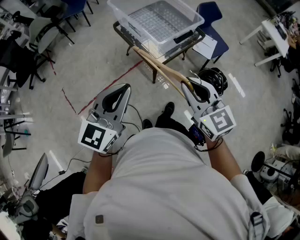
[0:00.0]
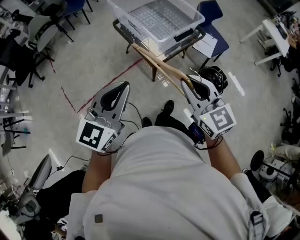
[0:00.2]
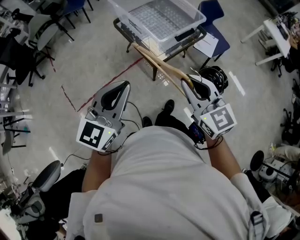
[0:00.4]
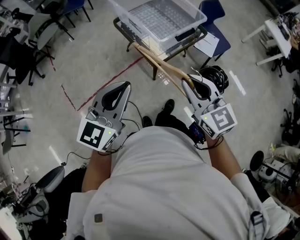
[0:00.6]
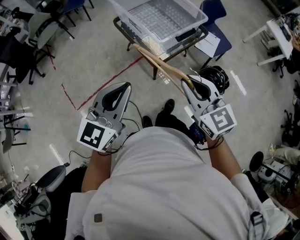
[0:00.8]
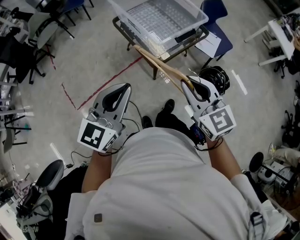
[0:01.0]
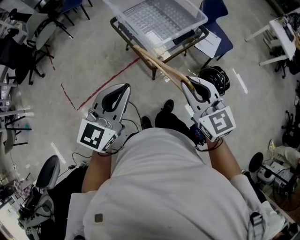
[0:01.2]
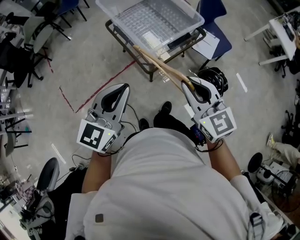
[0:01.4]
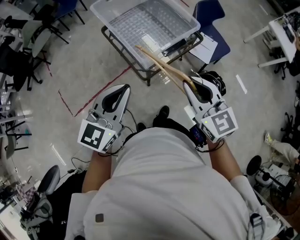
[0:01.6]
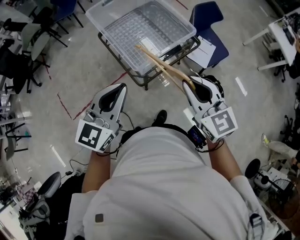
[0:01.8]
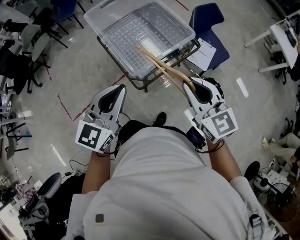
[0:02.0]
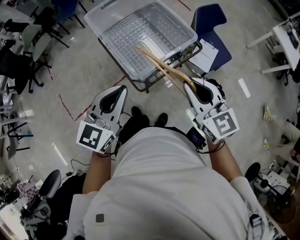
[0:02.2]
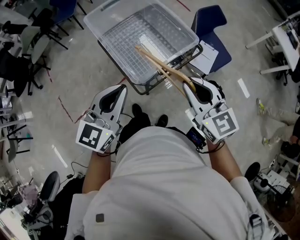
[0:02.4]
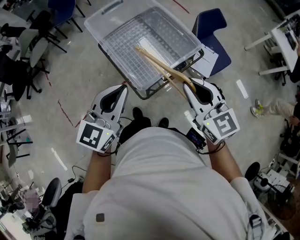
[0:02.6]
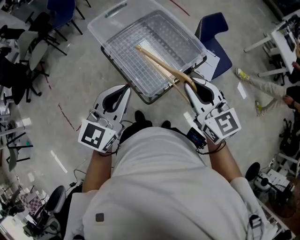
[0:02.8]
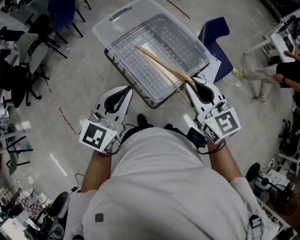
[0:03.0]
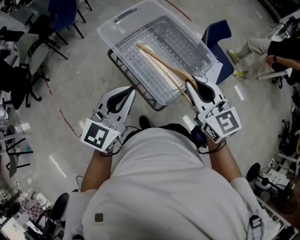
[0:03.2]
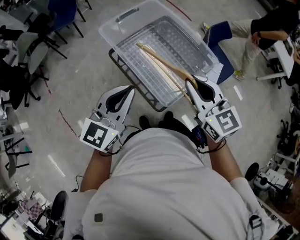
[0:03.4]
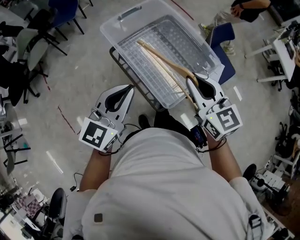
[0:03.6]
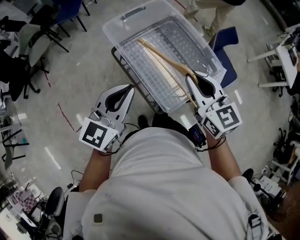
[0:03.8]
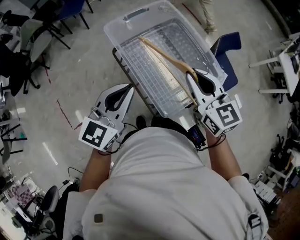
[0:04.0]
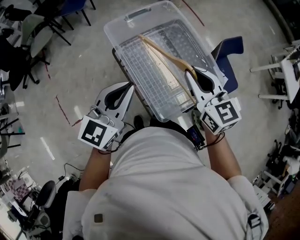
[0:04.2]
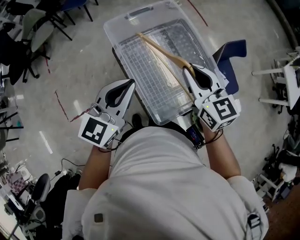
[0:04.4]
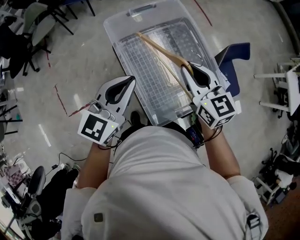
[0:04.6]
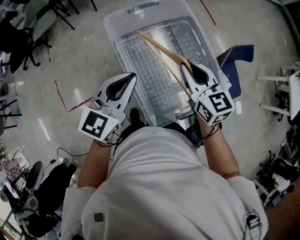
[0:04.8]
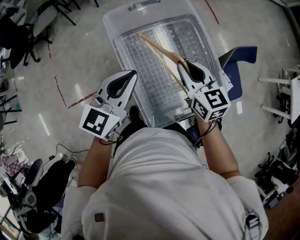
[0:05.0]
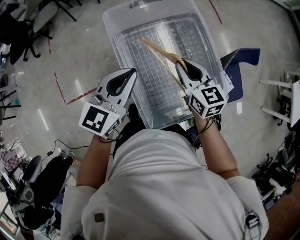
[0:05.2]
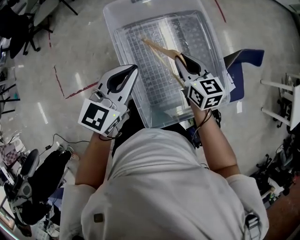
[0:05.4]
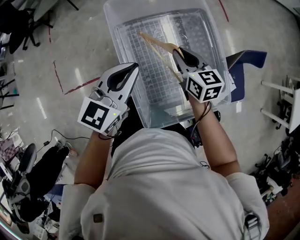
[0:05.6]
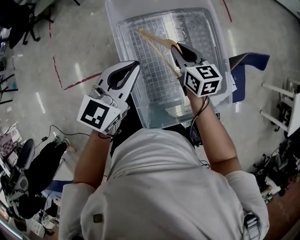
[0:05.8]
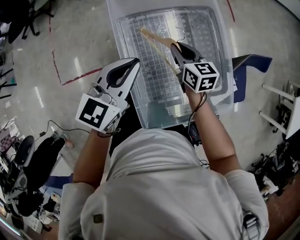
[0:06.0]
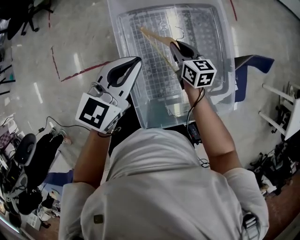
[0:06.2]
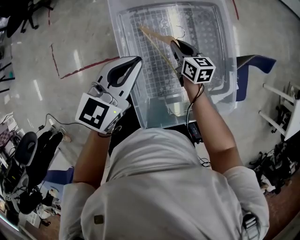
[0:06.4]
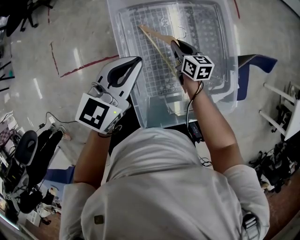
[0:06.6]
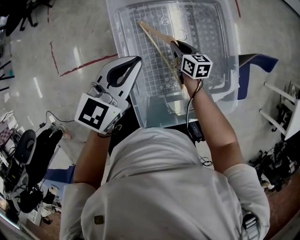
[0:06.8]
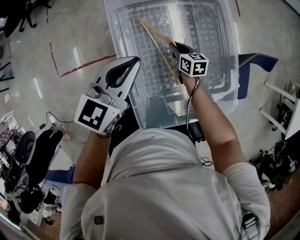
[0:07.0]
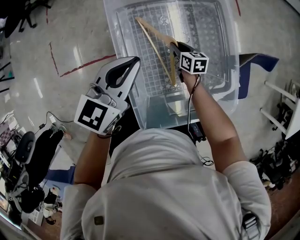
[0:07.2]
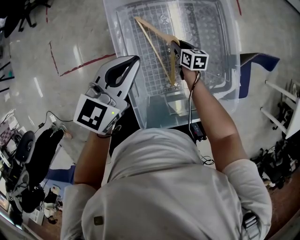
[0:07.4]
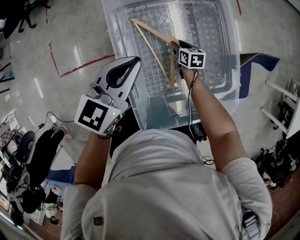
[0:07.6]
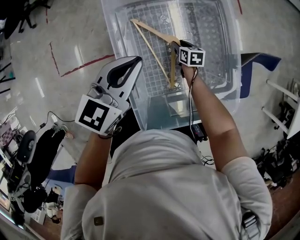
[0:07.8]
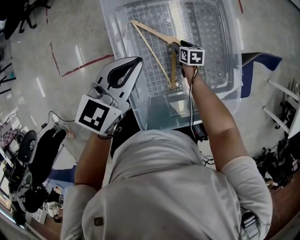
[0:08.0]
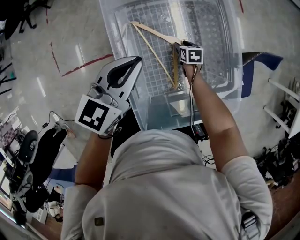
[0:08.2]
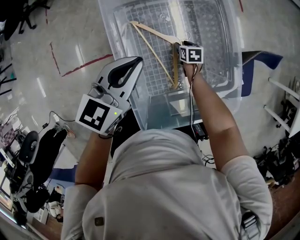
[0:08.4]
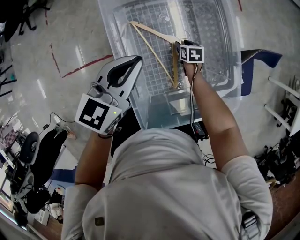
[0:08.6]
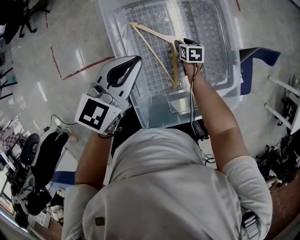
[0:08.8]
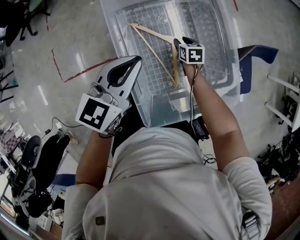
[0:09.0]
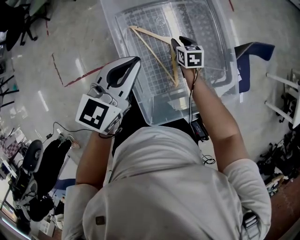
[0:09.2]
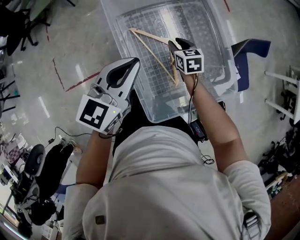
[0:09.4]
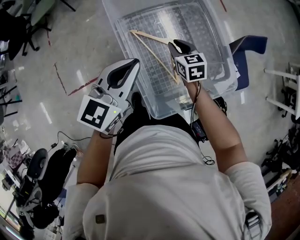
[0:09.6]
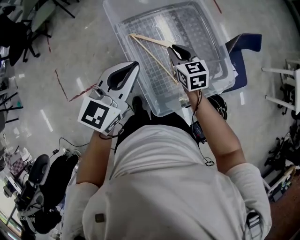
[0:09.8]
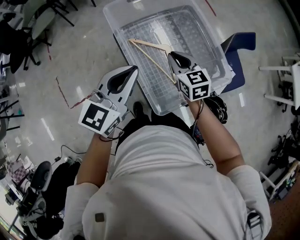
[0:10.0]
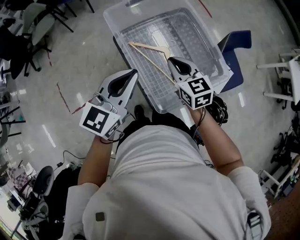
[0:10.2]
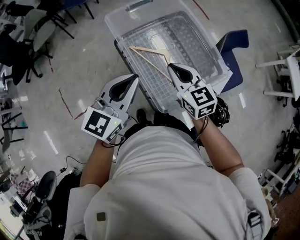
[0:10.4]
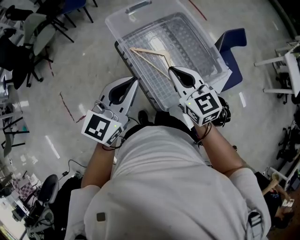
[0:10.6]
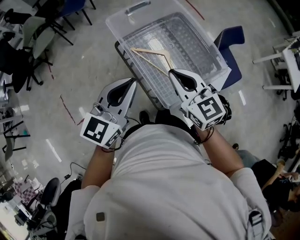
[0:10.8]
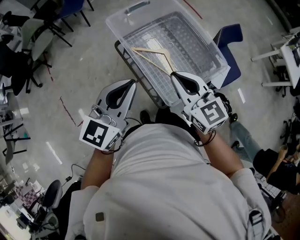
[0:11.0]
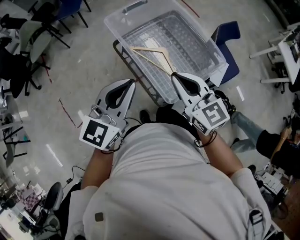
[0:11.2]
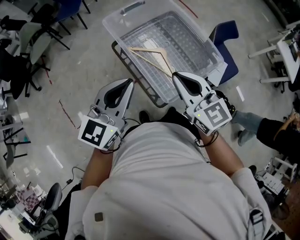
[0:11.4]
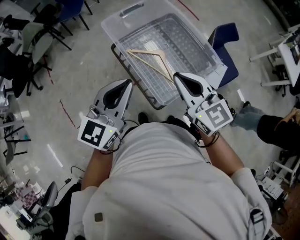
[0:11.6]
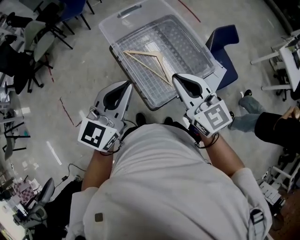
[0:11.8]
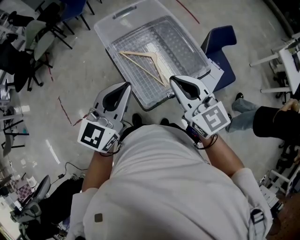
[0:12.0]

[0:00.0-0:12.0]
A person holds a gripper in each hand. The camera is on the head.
0:00.0 to 0:01.6: The two grippers go approximately 20 cm forward and to the right.
0:01.6 to 0:03.0: Both grippers move forward, some 20 cm.
0:03.0 to 0:04.4: Both grippers travel together forward, about 15 cm.
0:04.4 to 0:06.0: The right gripper shifts approximately 25 cm downward and forward, and turns by roughly 20 degrees. Meanwhile the left gripper is displaced downward and forward by approximately 15 cm.
0:06.0 to 0:07.6: The right gripper travels downward by approximately 20 cm, and swivels some 20 degrees.
0:07.6 to 0:09.0: The grippers move only a little.
0:09.0 to 0:10.4: The left gripper shifts roughly 15 cm backward and upward; the right gripper travels upward and backward by roughly 40 cm, tips its fingers upward by some 30 degrees, and closes its fingers.
0:10.4 to 0:12.0: The right gripper is displaced upward, backward and to the right by some 20 cm; the left gripper travels backward, to the right and upward by about 10 cm.

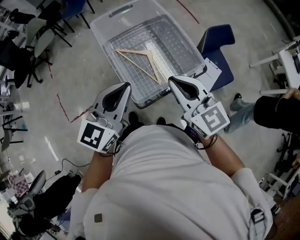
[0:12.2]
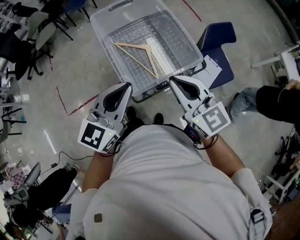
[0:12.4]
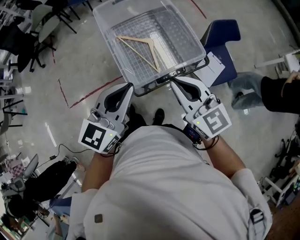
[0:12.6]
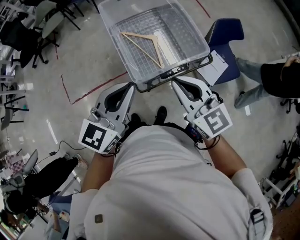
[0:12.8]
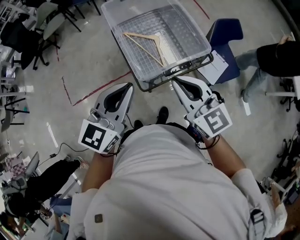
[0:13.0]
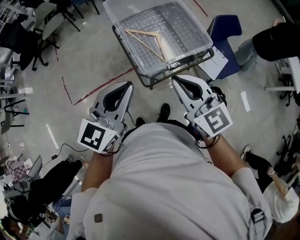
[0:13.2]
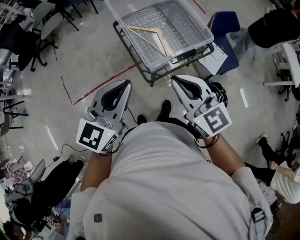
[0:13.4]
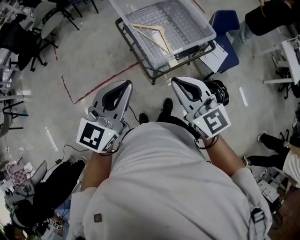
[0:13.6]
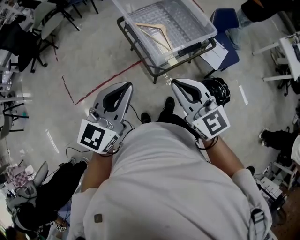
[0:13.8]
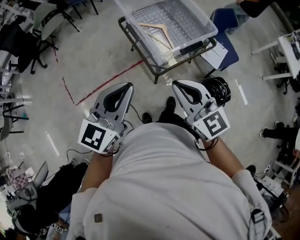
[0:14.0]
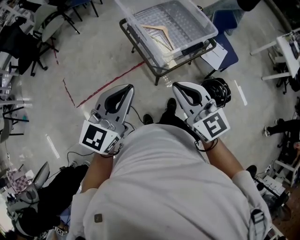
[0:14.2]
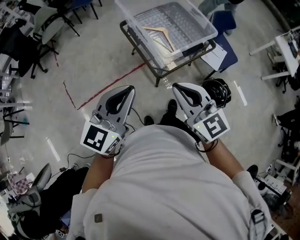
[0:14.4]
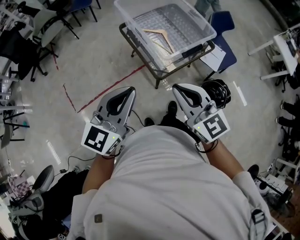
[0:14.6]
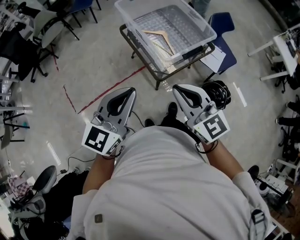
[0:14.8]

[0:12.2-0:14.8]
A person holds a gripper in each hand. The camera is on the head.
0:12.2 to 0:13.4: Both grippers travel together backward and to the left, approximately 15 cm.
0:13.4 to 0:14.8: Both grippers move to the left and backward, about 15 cm.

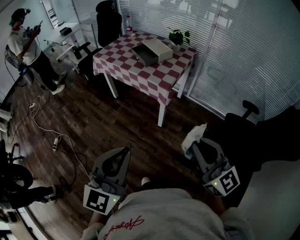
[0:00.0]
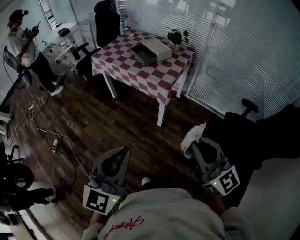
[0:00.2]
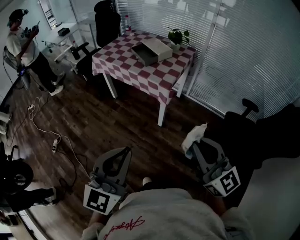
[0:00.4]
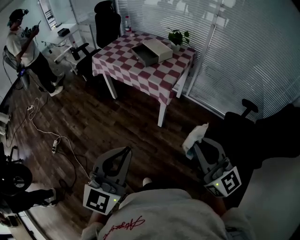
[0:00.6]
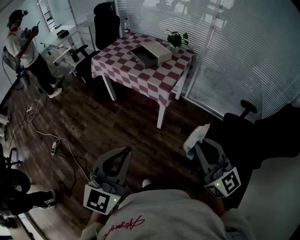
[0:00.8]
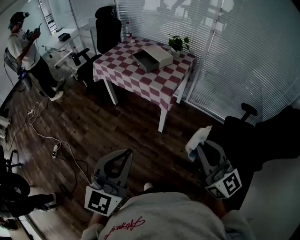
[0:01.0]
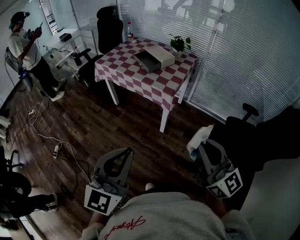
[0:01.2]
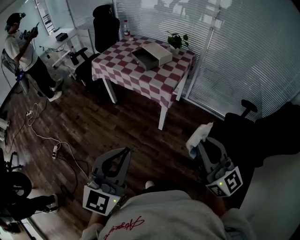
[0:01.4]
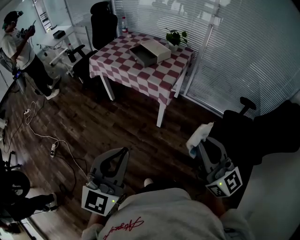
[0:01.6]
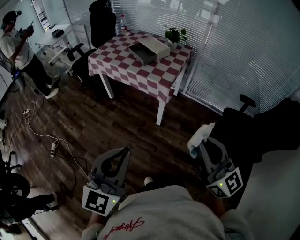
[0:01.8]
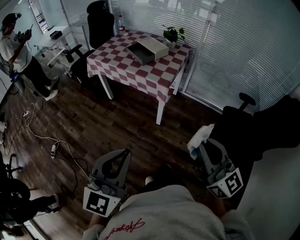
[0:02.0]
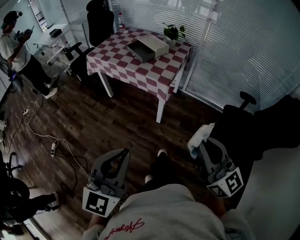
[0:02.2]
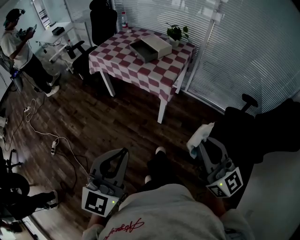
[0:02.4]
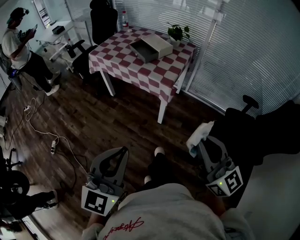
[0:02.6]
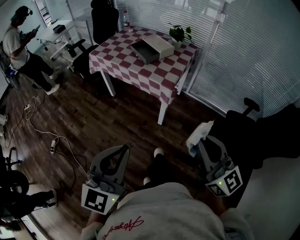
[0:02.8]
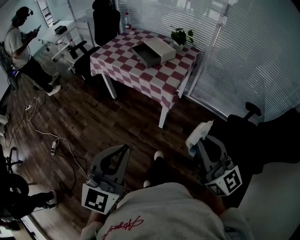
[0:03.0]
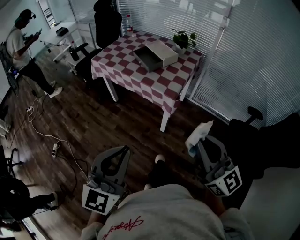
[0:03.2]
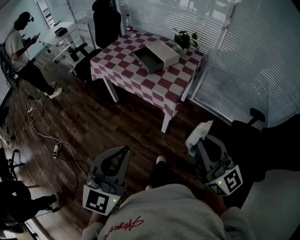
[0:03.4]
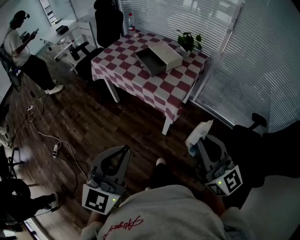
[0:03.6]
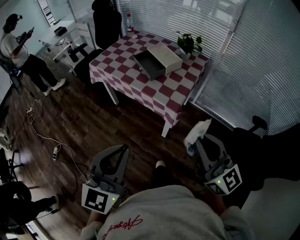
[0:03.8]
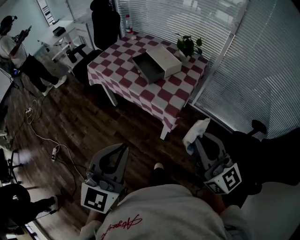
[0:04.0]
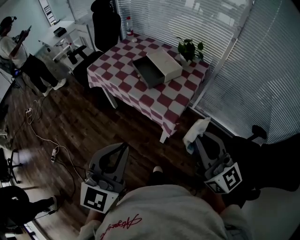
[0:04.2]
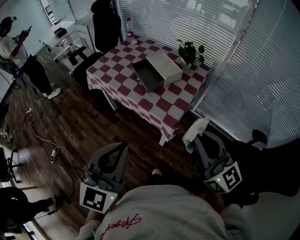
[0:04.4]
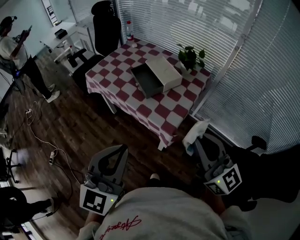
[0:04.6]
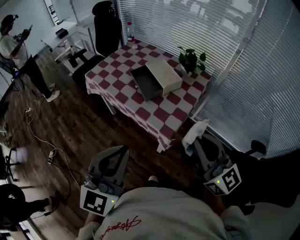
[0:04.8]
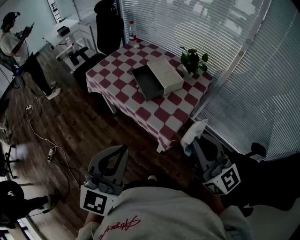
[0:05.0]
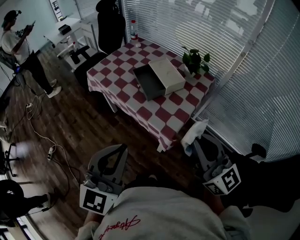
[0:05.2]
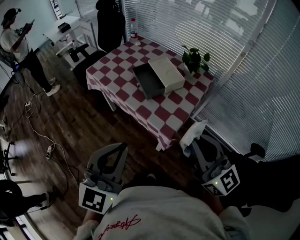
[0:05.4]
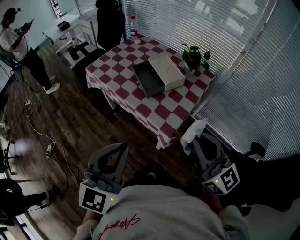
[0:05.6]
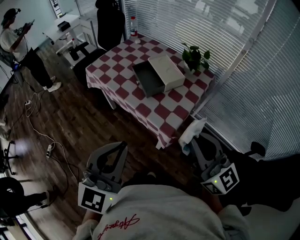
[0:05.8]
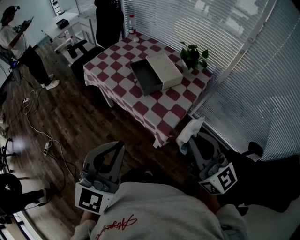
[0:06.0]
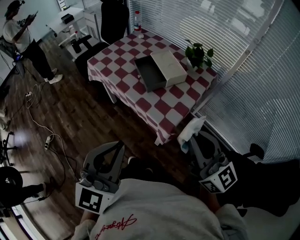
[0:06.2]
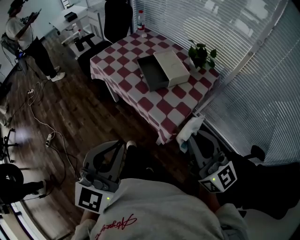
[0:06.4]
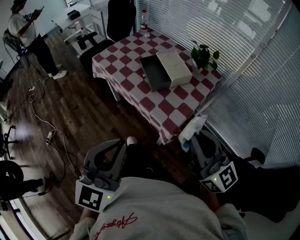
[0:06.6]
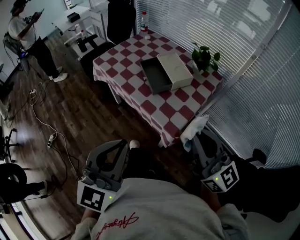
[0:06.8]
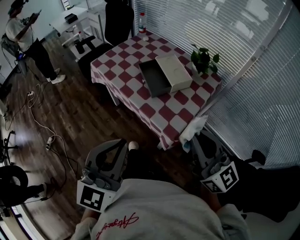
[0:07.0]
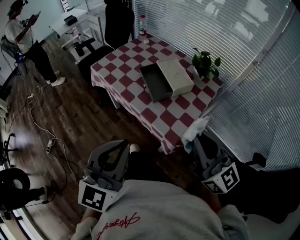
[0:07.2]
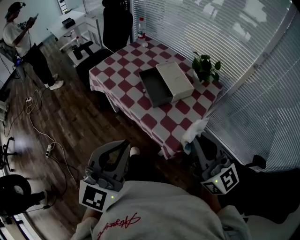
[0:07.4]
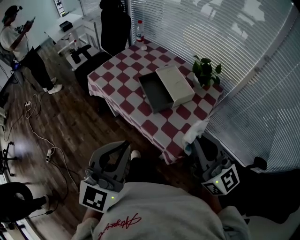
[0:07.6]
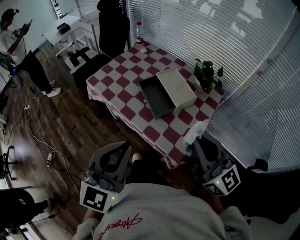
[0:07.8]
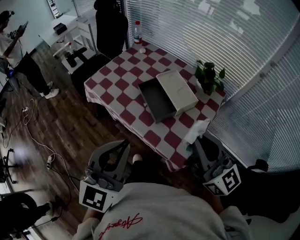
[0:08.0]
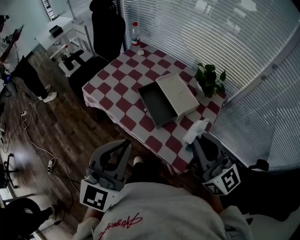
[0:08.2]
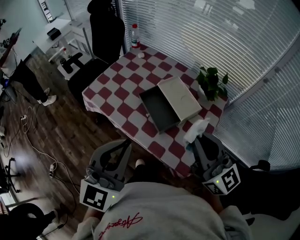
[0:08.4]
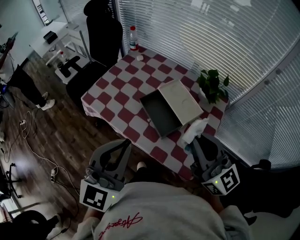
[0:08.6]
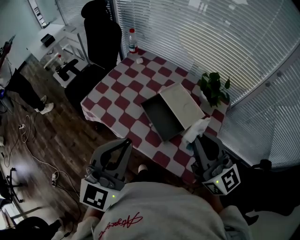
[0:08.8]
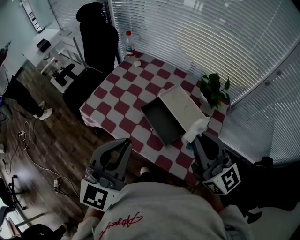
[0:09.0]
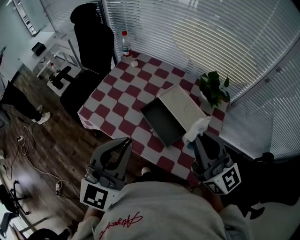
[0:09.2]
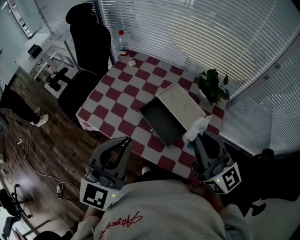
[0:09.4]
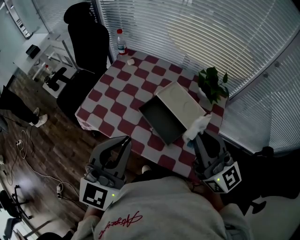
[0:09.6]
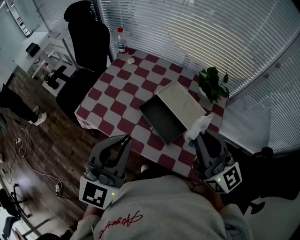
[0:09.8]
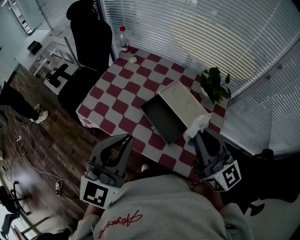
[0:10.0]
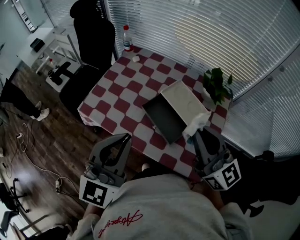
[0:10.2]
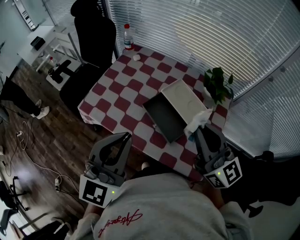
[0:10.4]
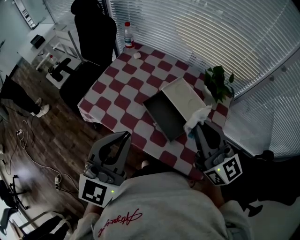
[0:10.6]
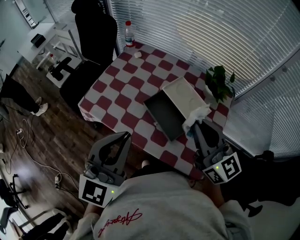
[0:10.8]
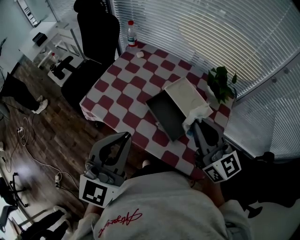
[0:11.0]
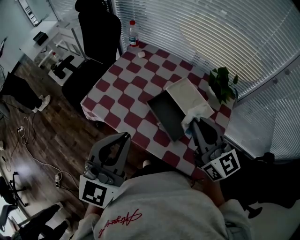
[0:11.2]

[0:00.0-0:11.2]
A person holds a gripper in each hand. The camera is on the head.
0:00.0 to 0:01.6: The left gripper heads to the left, covering roughly 5 cm.
0:01.6 to 0:03.2: The two grippers go approximately 10 cm forward.
0:03.2 to 0:04.8: Both grippers move forward, roughly 25 cm.
0:04.8 to 0:06.4: The grippers move only a little.
0:06.4 to 0:08.0: Both grippers move forward, roughly 20 cm.
0:08.0 to 0:09.6: The right gripper shifts about 15 cm forward and to the left; the left gripper travels forward by some 15 cm.
0:09.6 to 0:11.2: The right gripper moves approximately 5 cm.
